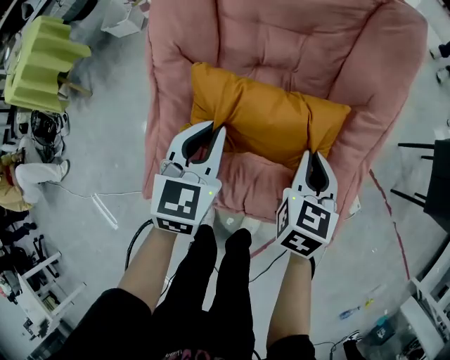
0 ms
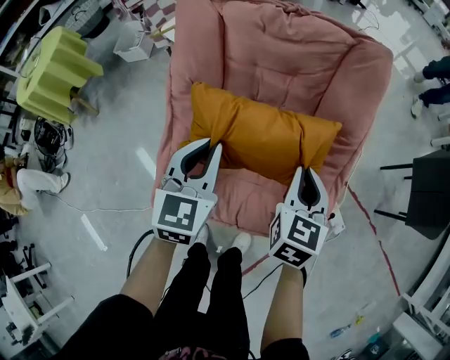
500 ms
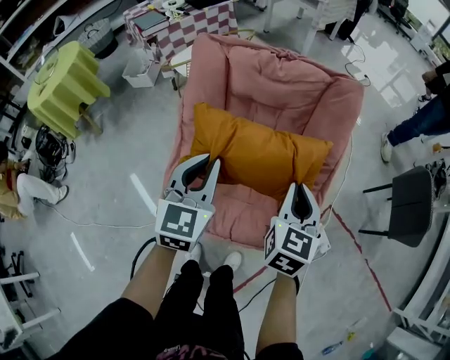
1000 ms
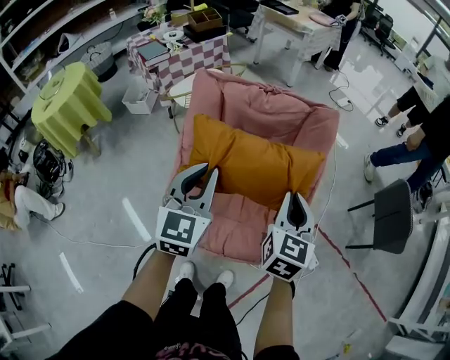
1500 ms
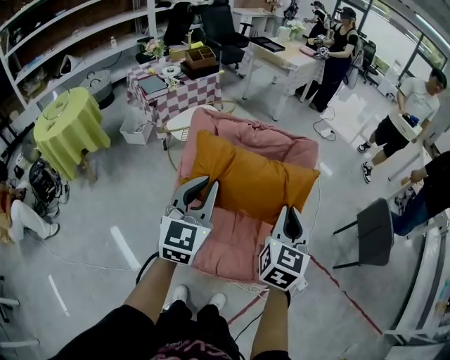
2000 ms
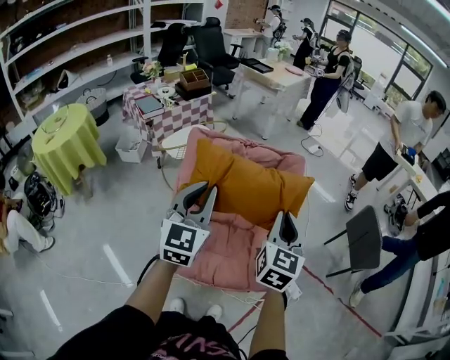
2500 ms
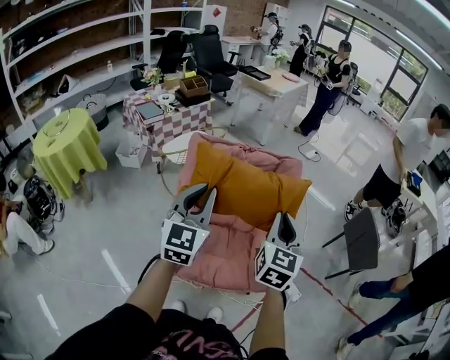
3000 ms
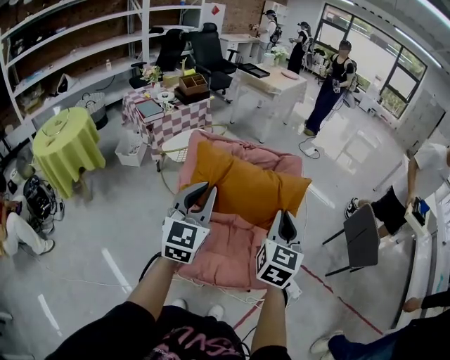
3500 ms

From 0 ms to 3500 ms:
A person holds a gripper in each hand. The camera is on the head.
From 0 ms to 2000 ms: Both grippers move upward, some 40 cm. The left gripper turns by approximately 30 degrees. Meanwhile the right gripper turns by approximately 20 degrees.
From 2000 ms to 3500 ms: The right gripper travels upward and backward by some 10 cm; the left gripper moves upward, about 5 cm.

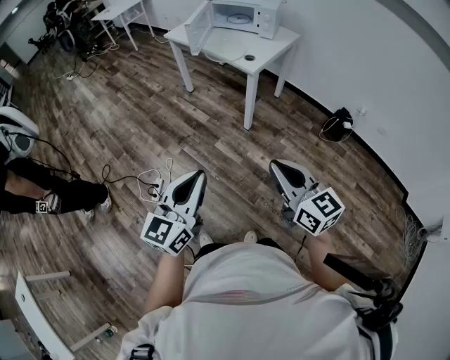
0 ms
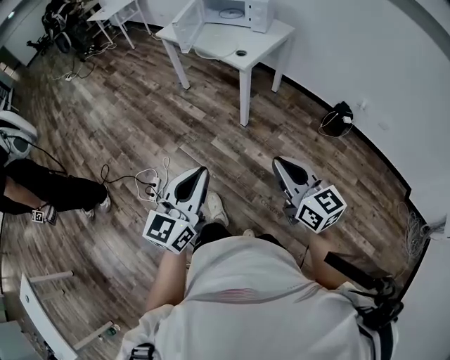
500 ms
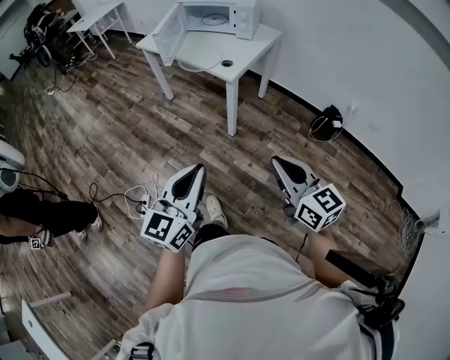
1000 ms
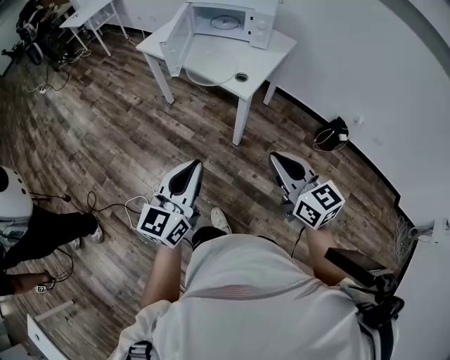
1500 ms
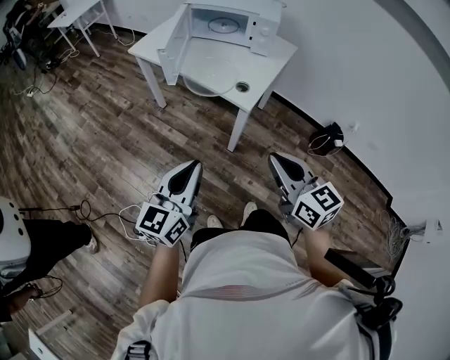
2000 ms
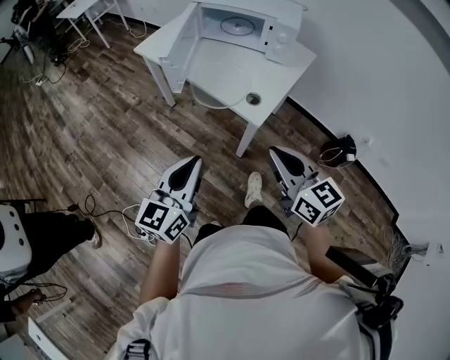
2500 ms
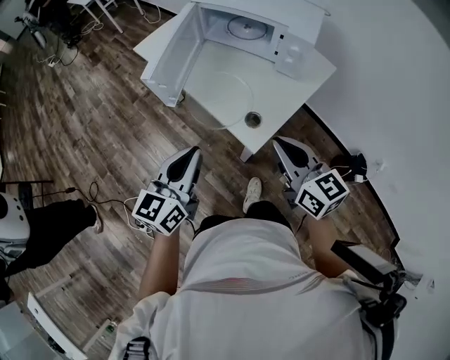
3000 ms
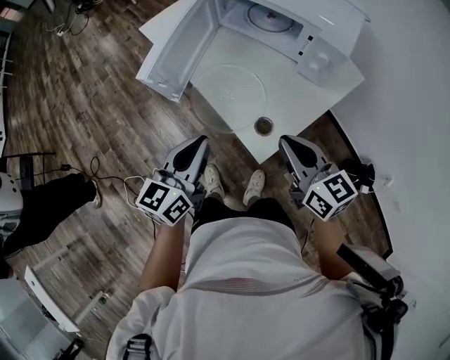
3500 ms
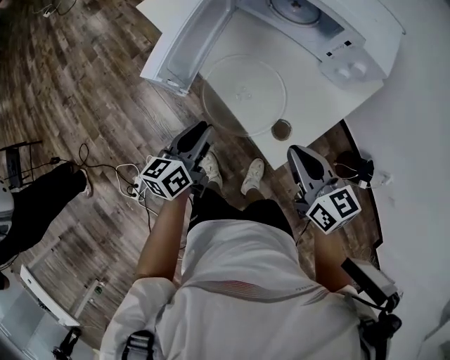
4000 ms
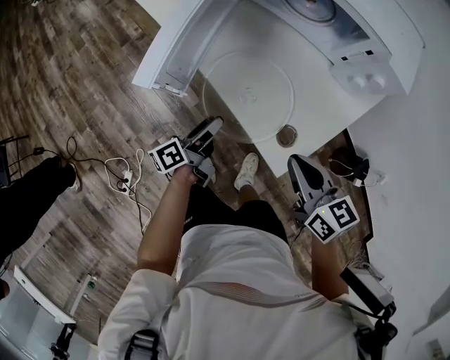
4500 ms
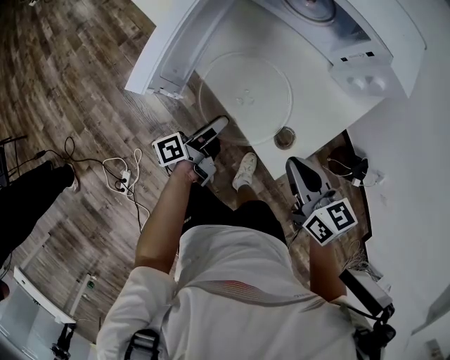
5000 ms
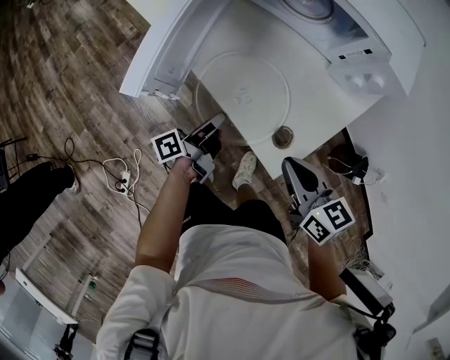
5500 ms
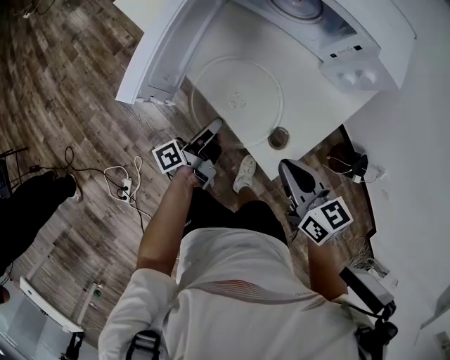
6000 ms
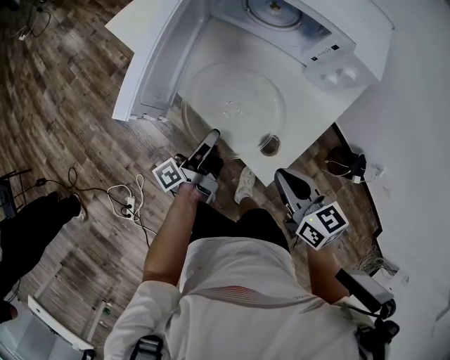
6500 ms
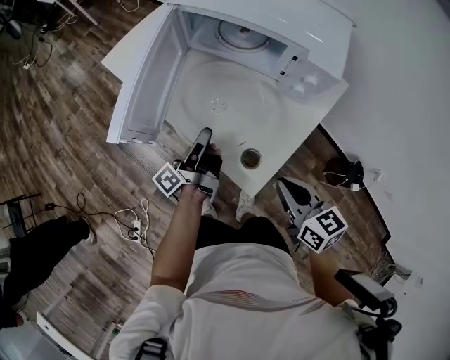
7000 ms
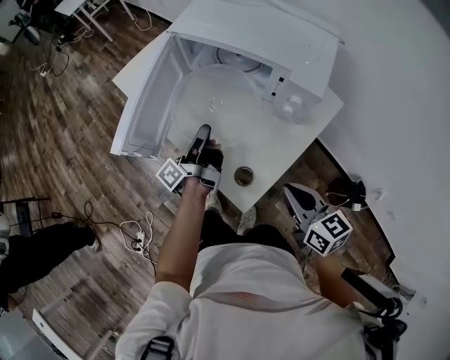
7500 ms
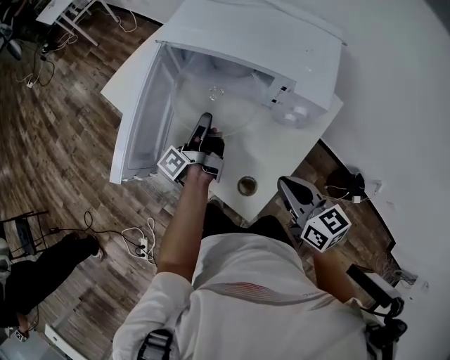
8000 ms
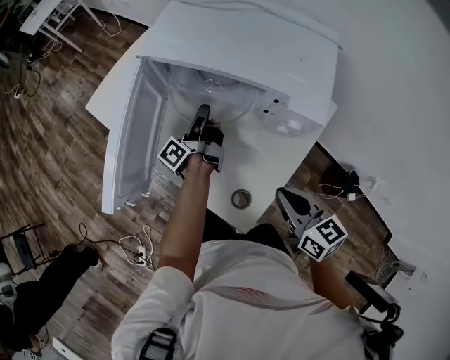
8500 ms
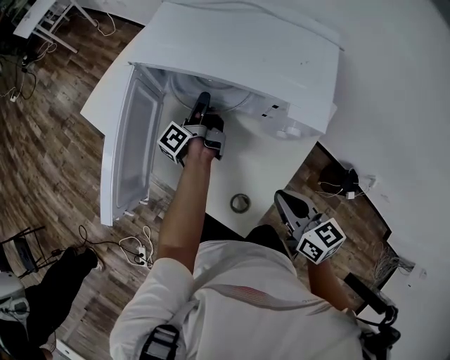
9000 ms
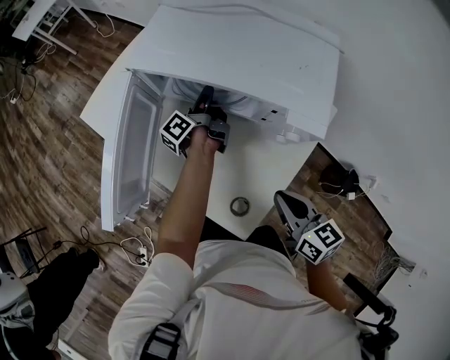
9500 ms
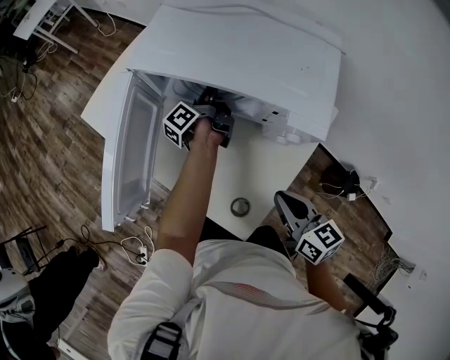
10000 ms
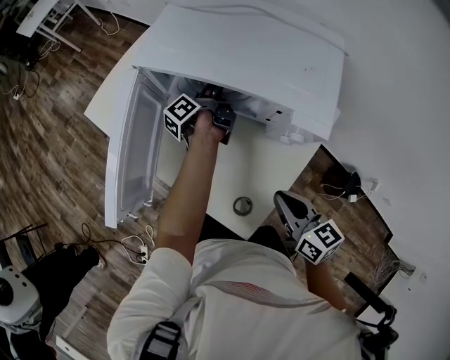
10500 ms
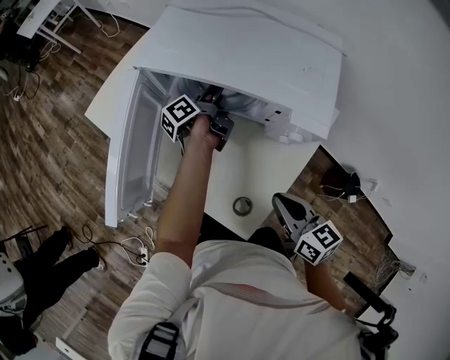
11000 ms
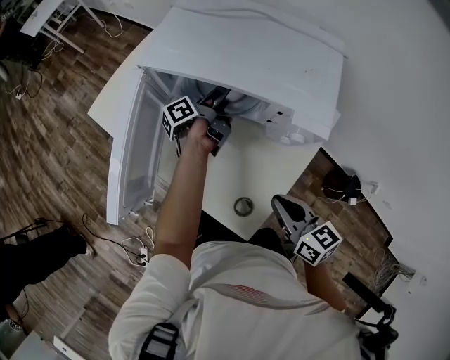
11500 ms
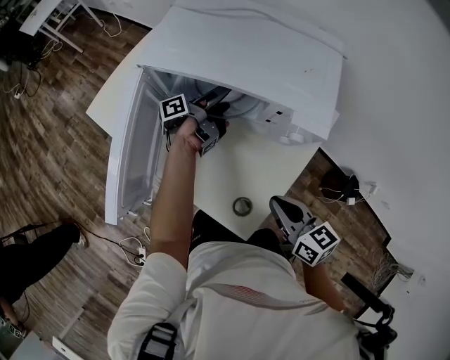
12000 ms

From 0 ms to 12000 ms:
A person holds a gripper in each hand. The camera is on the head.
From 0 ms to 2000 ms: The grippers both shift forward by approximately 35 cm.
From 2000 ms to 4000 ms: The left gripper shifts some 40 cm forward and downward, and swivels about 40 degrees. The right gripper shifts approximately 35 cm forward, and changes its angle by some 20 degrees.
From 4000 ms to 6000 ms: The right gripper shifts roughly 5 cm downward. Meanwhile the left gripper shifts some 10 cm downward, rotates around the line of its fingers by roughly 40 degrees, counterclockwise from behind, and opens, then closes again.
From 6000 ms to 8000 ms: The left gripper shifts about 25 cm forward, upward and to the right. The right gripper is displaced to the right, upward and forward by roughly 15 cm.
From 8000 ms to 10000 ms: The right gripper moves approximately 5 cm, while the left gripper shifts some 20 cm forward and to the right.
From 10000 ms to 12000 ms: The left gripper changes place by approximately 5 cm, turns by some 30 degrees, and opens its fingers.

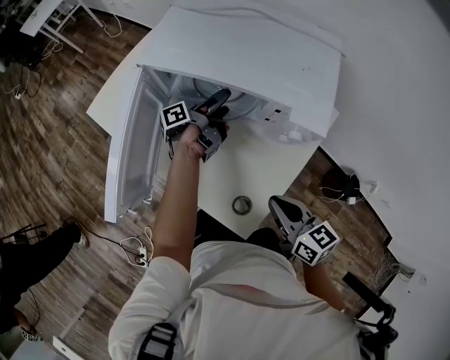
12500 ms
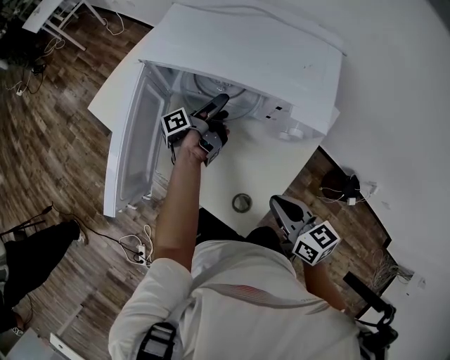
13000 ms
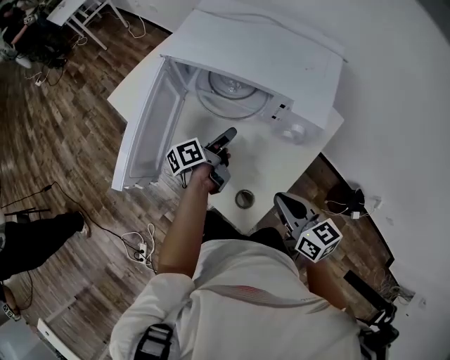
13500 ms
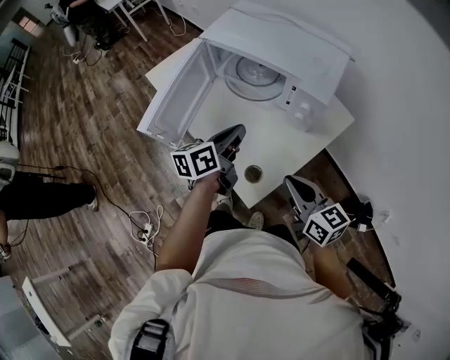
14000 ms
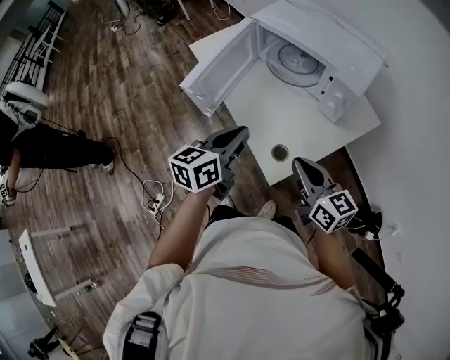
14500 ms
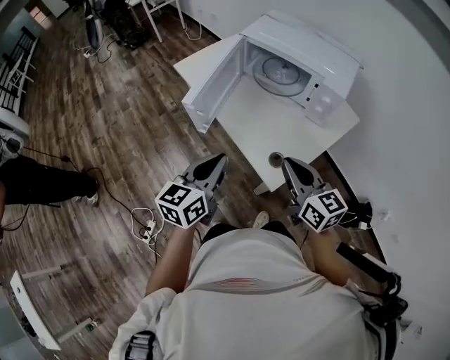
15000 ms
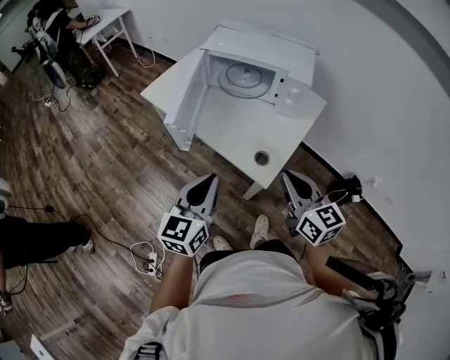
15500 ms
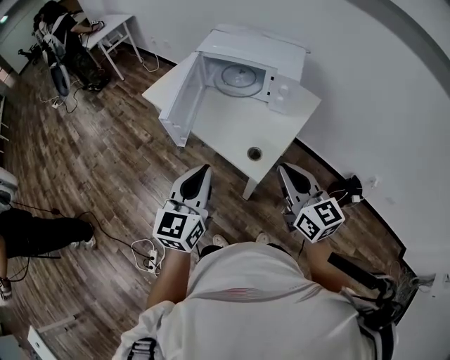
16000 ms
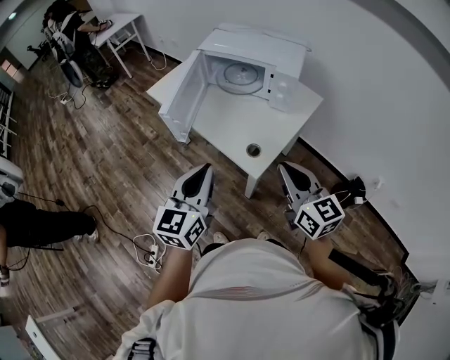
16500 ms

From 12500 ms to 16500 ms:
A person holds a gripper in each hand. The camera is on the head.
From 12500 ms to 14500 ms: The right gripper moves backward and upward, some 15 cm, and turns by approximately 20 degrees; the left gripper travels backward and upward by some 40 cm, twists about 70 degrees clockwise, seen from behind, and closes up.
From 14500 ms to 16500 ms: The two grippers go some 15 cm backward and upward. The left gripper swivels approximately 20 degrees. Meanwhile the right gripper swivels approximately 30 degrees.

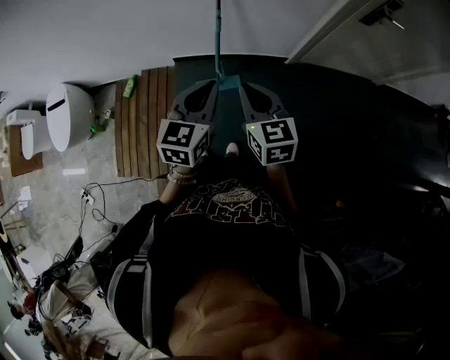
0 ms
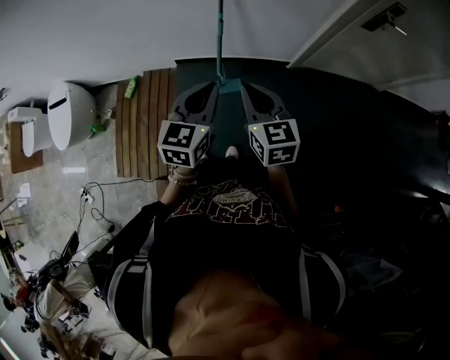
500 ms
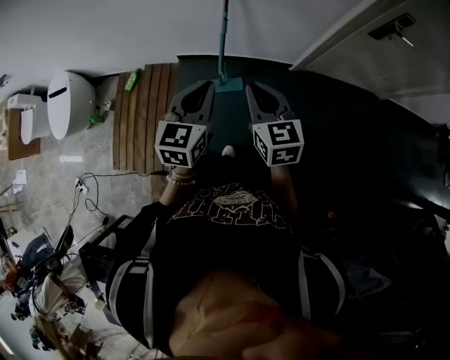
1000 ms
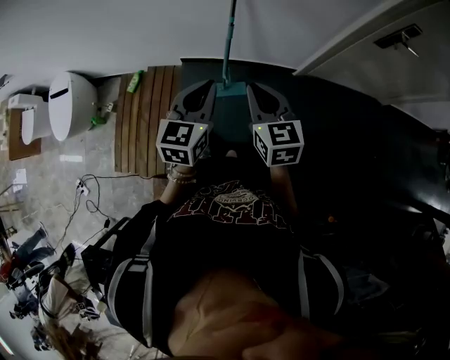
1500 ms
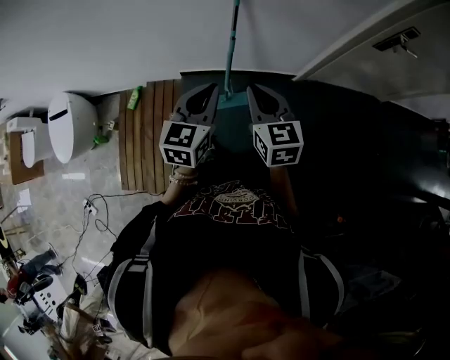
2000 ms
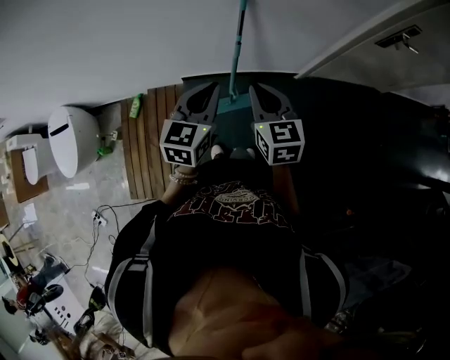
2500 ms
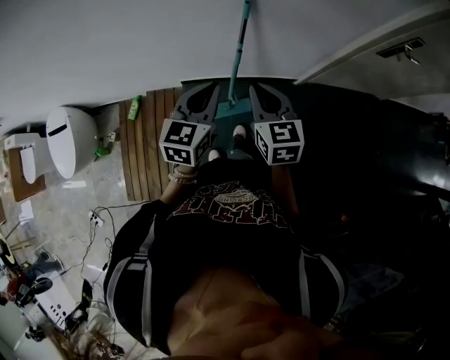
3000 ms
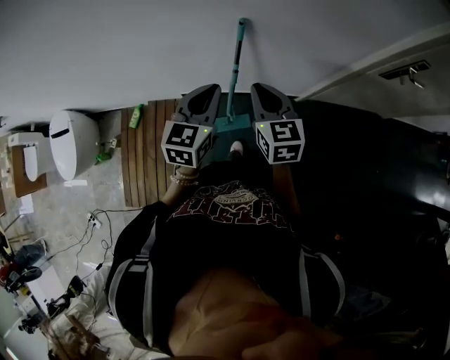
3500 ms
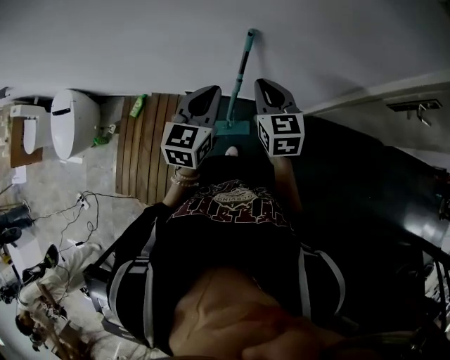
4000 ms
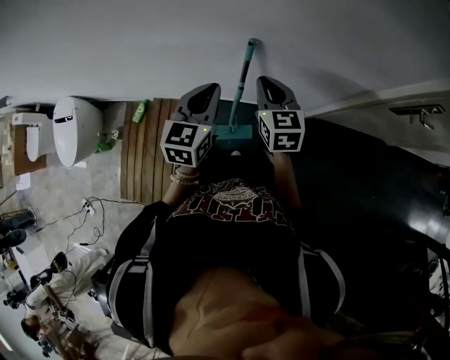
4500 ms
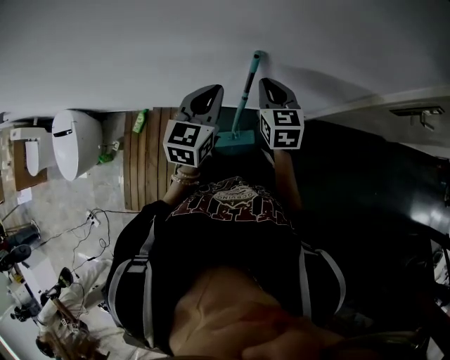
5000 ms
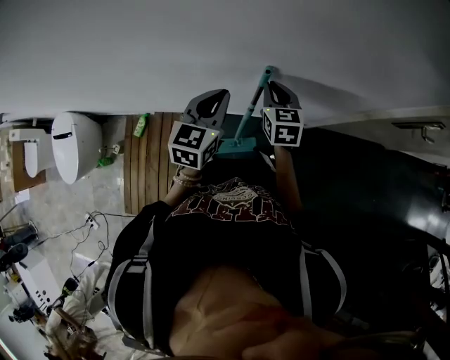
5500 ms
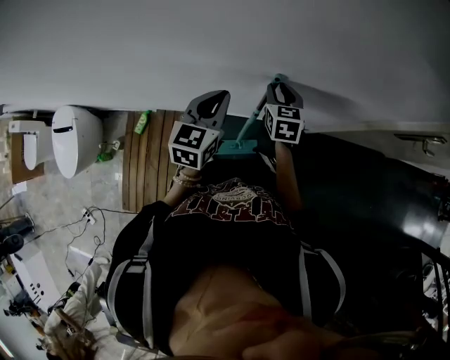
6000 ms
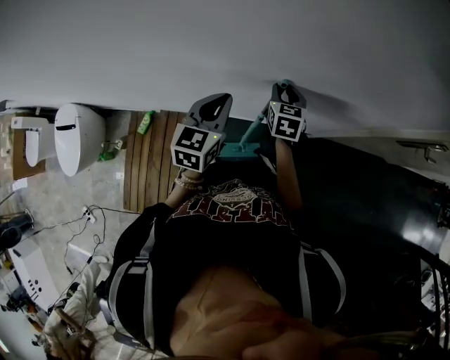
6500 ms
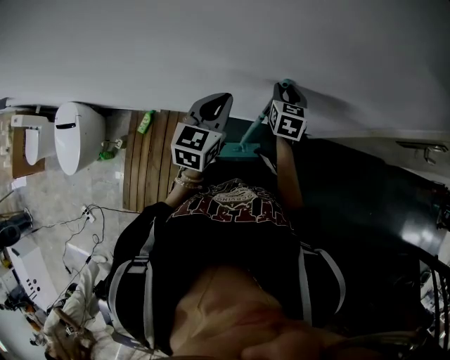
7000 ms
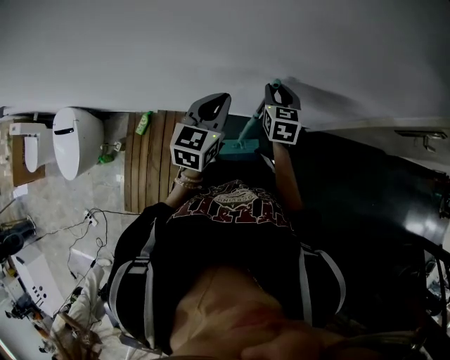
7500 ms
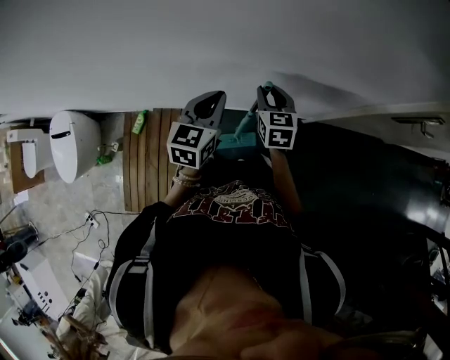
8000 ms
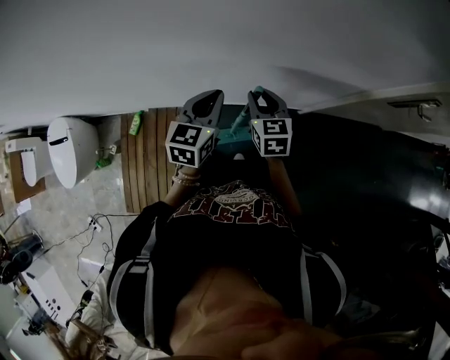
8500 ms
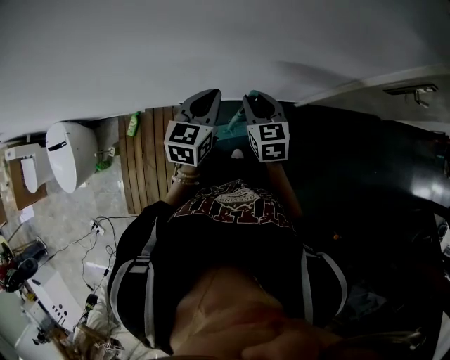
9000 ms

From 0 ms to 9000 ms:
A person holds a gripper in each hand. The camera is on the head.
From 0 ms to 2000 ms: The right gripper heads forward, covering roughly 10 cm; the left gripper heads forward and to the left, covering some 15 cm.
From 2000 ms to 4500 ms: The two grippers go some 30 cm forward.
From 4500 ms to 7000 ms: The left gripper moves forward and to the left, some 10 cm. The right gripper goes about 15 cm forward and downward, and opens its fingers.
From 7000 ms to 9000 ms: The right gripper moves backward, approximately 15 cm. Meanwhile the left gripper goes roughly 5 cm to the right.
